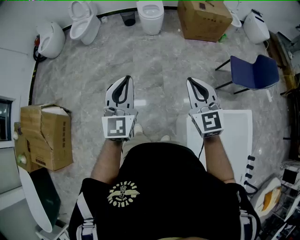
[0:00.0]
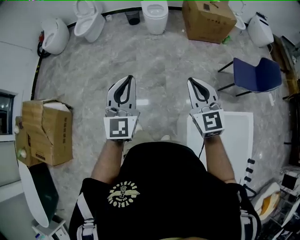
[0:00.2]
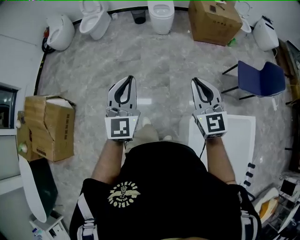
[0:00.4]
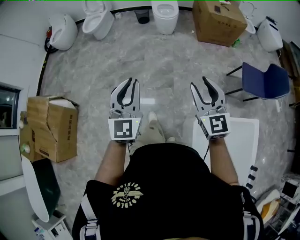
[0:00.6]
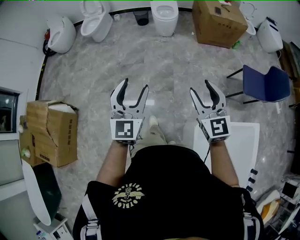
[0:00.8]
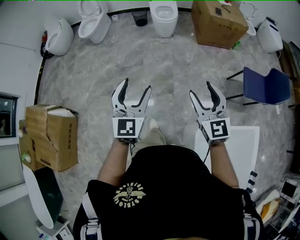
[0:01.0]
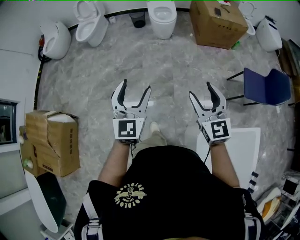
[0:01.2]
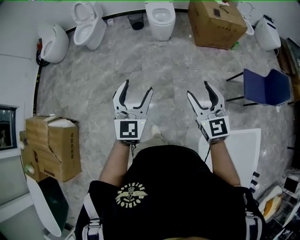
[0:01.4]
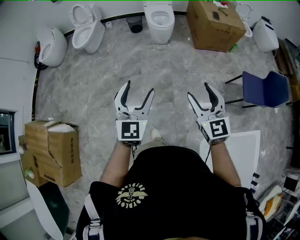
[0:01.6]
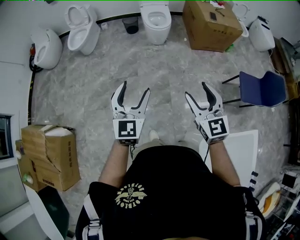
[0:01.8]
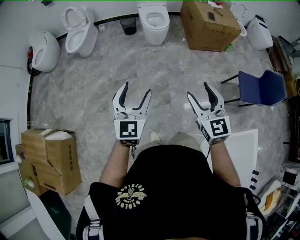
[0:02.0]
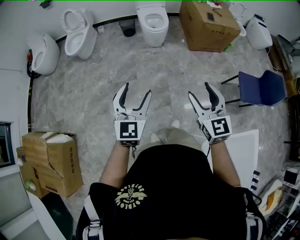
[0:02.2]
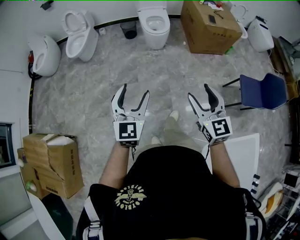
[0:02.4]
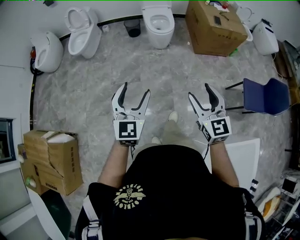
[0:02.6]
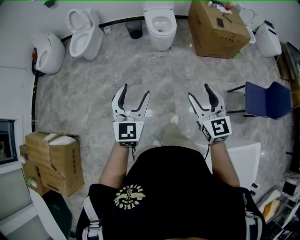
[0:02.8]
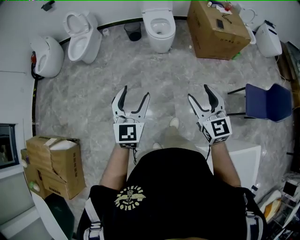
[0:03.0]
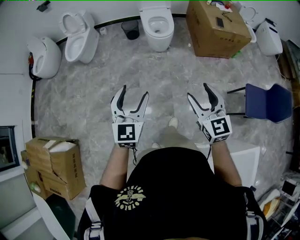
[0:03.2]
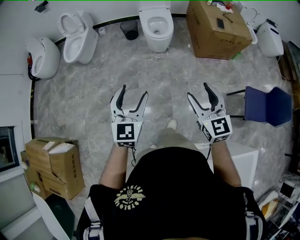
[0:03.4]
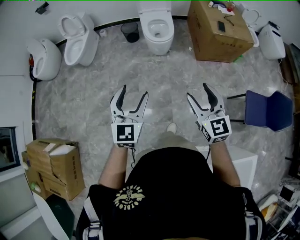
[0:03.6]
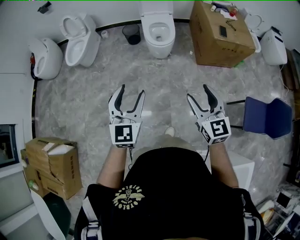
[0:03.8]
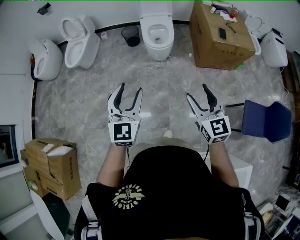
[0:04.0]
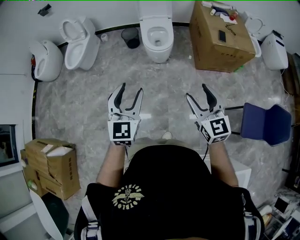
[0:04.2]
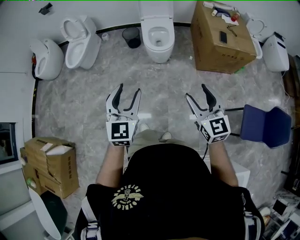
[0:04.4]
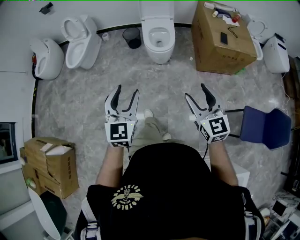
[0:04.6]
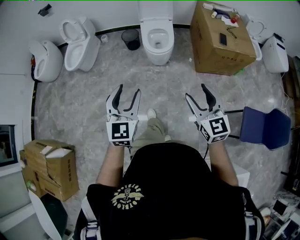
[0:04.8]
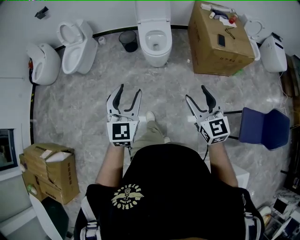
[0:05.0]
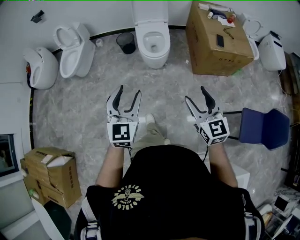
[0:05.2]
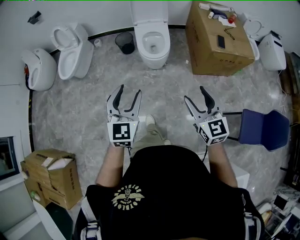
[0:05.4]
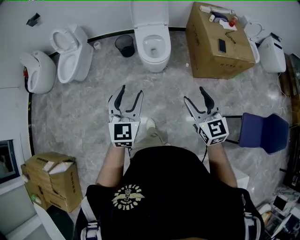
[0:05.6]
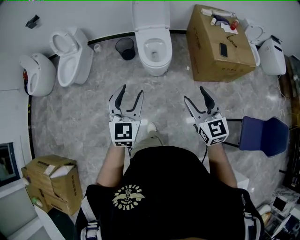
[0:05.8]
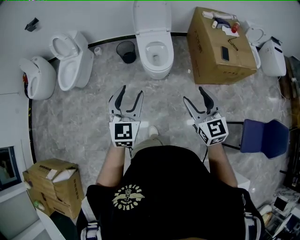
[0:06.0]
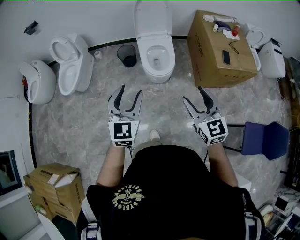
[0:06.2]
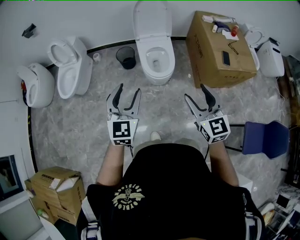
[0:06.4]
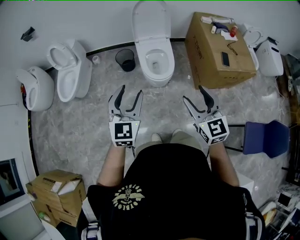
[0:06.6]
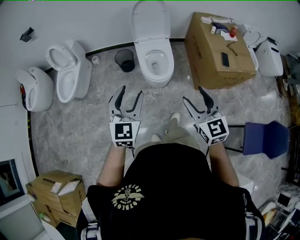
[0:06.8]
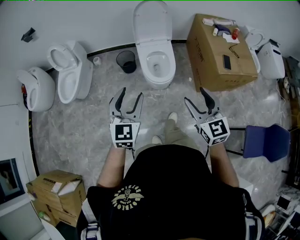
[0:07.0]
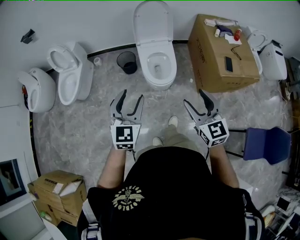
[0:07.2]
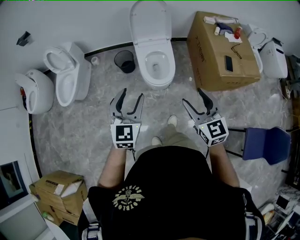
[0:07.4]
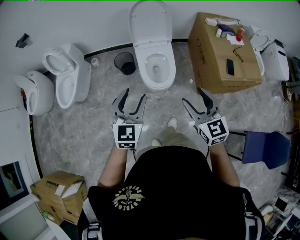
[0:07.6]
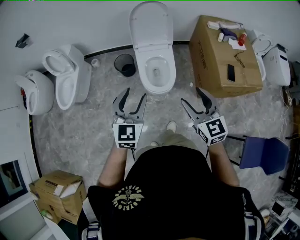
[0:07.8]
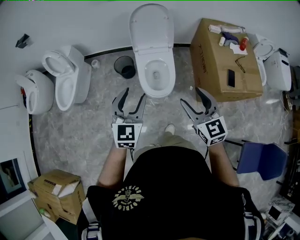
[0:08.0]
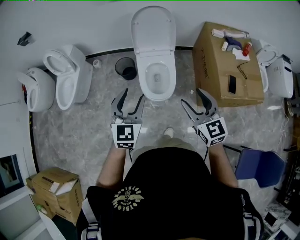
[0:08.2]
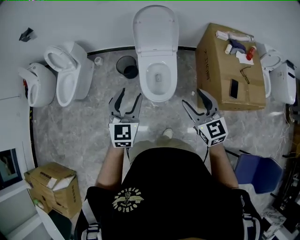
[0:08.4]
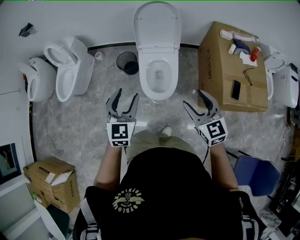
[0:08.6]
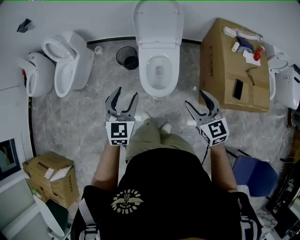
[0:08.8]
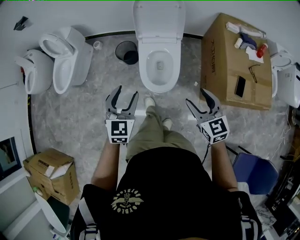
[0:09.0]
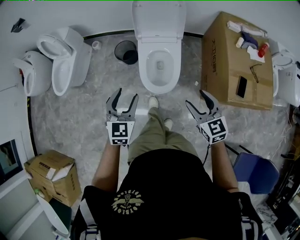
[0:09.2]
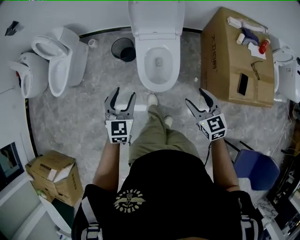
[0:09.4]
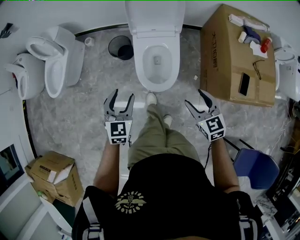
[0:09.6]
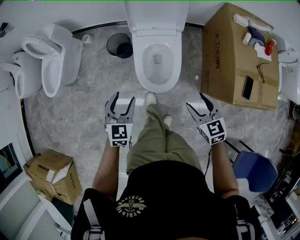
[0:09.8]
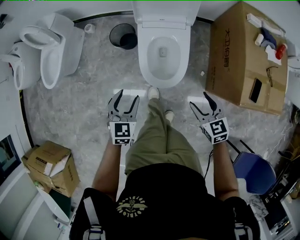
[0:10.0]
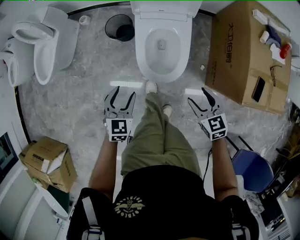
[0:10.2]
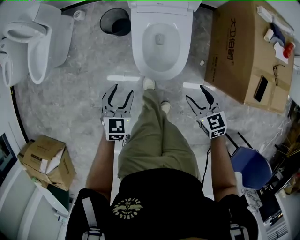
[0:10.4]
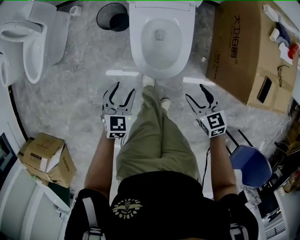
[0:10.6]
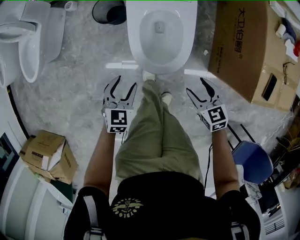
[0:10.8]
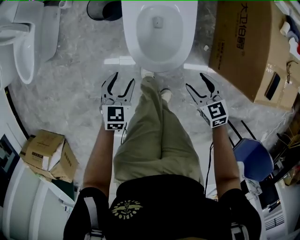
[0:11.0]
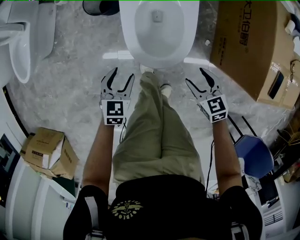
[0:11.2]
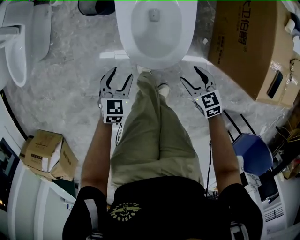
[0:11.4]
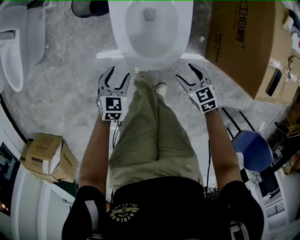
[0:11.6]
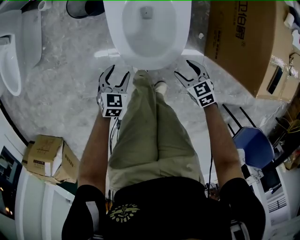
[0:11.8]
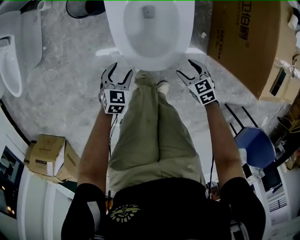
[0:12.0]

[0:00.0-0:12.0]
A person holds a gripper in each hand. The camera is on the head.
0:00.0 to 0:01.6: Both grippers travel together forward, some 20 cm. The right gripper opens its fingers; the left gripper opens up.
0:01.6 to 0:03.0: Both grippers move forward, approximately 20 cm.
0:03.0 to 0:04.4: Both grippers move forward and to the right, approximately 20 cm.
0:04.4 to 0:06.0: The grippers both shift forward by approximately 20 cm.
0:06.0 to 0:07.6: Both grippers move forward, roughly 20 cm.
0:07.6 to 0:09.0: The right gripper moves forward, downward and to the right, roughly 20 cm, while the left gripper moves forward and downward, roughly 15 cm.
0:09.0 to 0:10.4: Both grippers travel together downward, some 25 cm.
0:10.4 to 0:12.0: Both grippers move downward, about 25 cm.

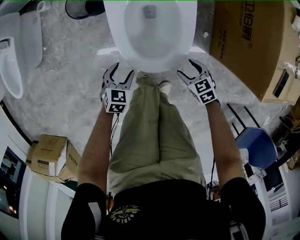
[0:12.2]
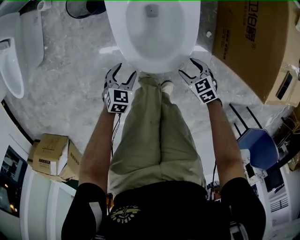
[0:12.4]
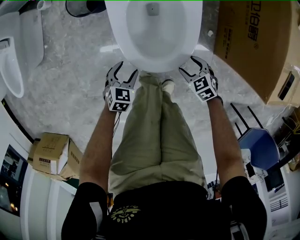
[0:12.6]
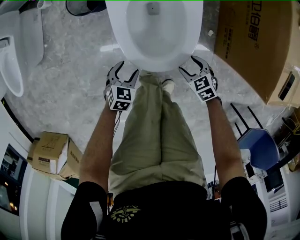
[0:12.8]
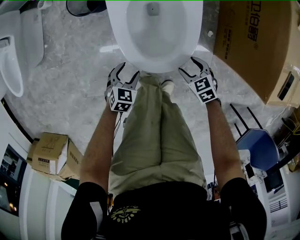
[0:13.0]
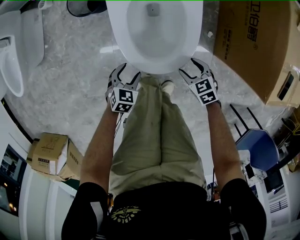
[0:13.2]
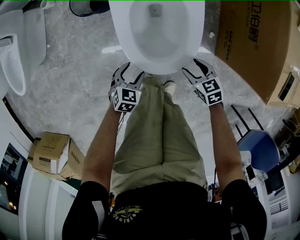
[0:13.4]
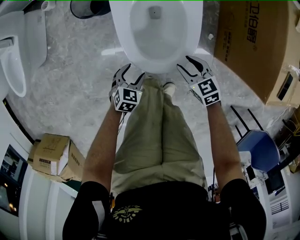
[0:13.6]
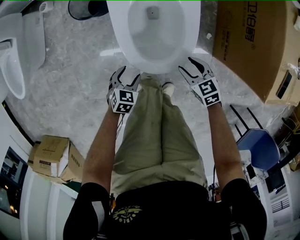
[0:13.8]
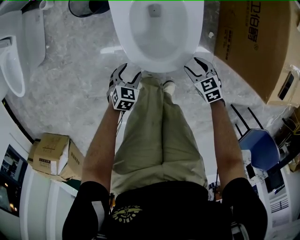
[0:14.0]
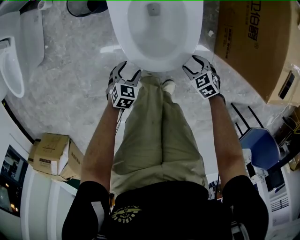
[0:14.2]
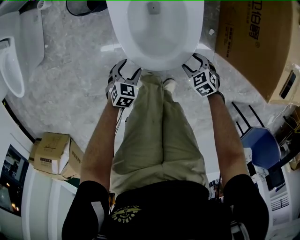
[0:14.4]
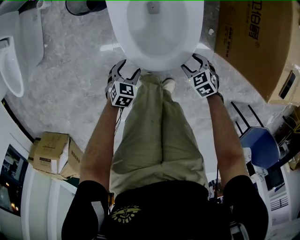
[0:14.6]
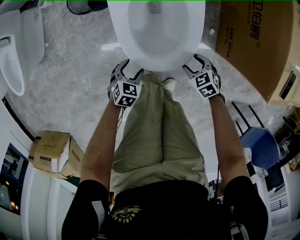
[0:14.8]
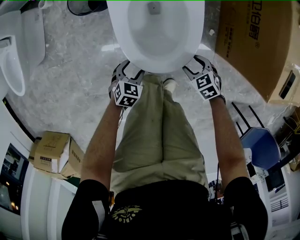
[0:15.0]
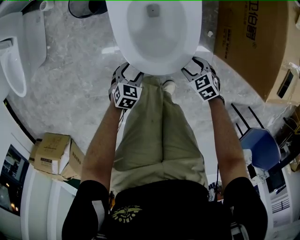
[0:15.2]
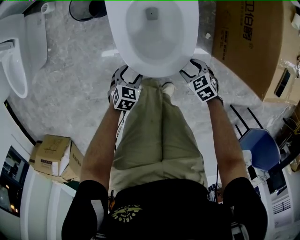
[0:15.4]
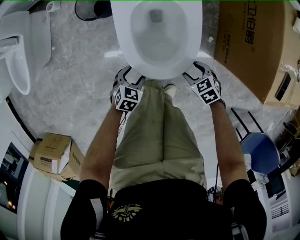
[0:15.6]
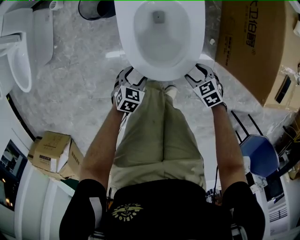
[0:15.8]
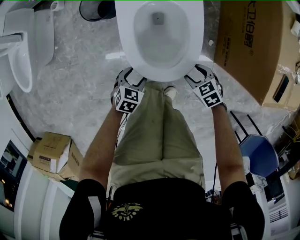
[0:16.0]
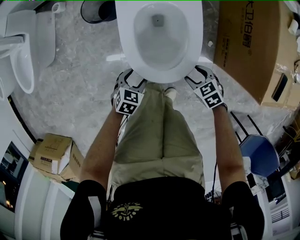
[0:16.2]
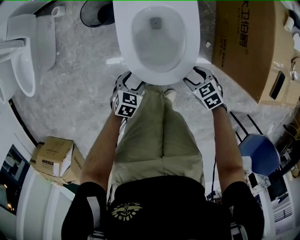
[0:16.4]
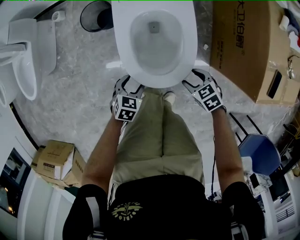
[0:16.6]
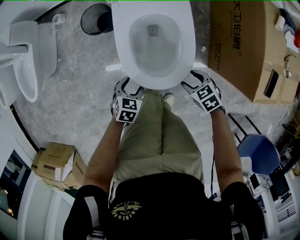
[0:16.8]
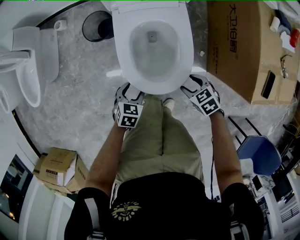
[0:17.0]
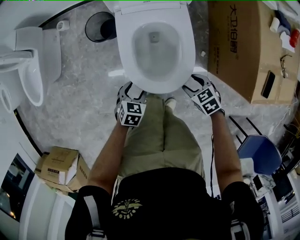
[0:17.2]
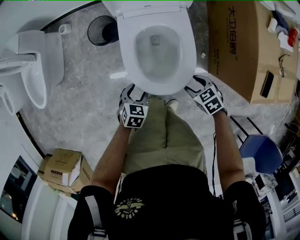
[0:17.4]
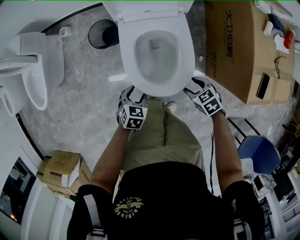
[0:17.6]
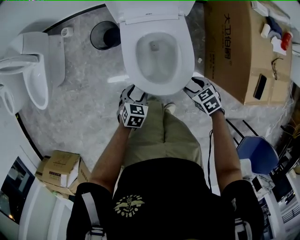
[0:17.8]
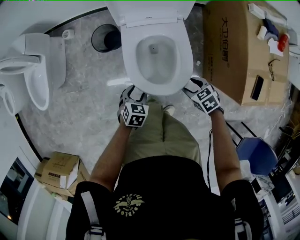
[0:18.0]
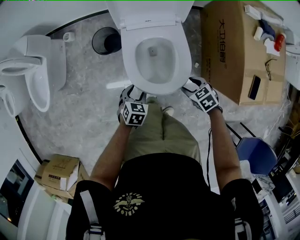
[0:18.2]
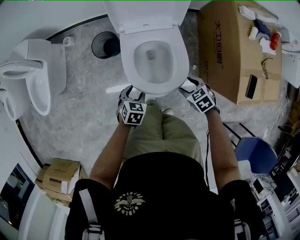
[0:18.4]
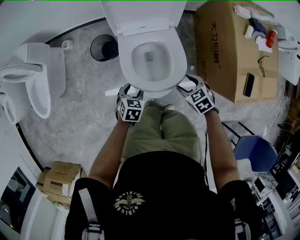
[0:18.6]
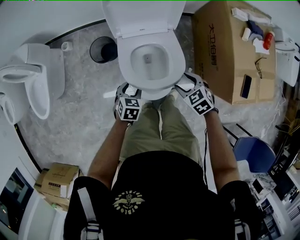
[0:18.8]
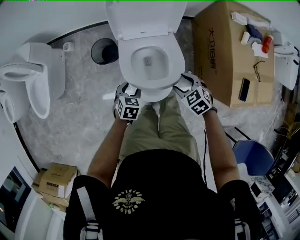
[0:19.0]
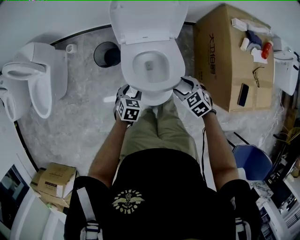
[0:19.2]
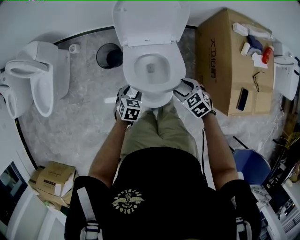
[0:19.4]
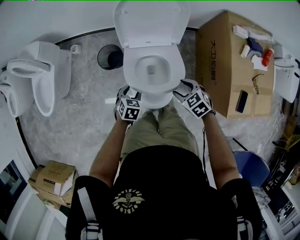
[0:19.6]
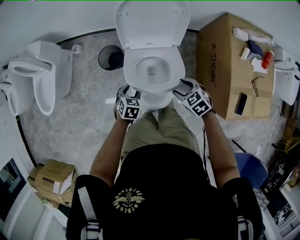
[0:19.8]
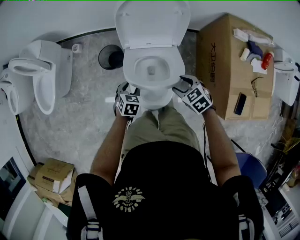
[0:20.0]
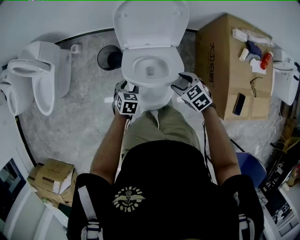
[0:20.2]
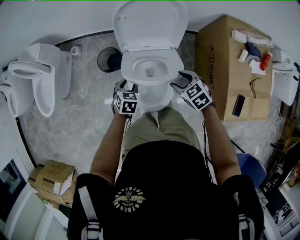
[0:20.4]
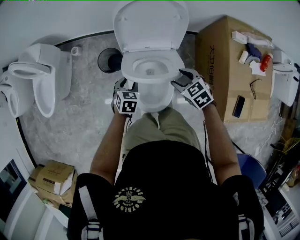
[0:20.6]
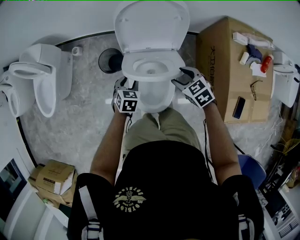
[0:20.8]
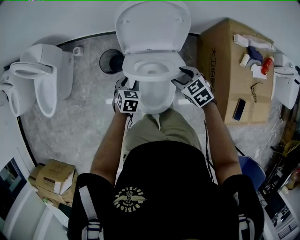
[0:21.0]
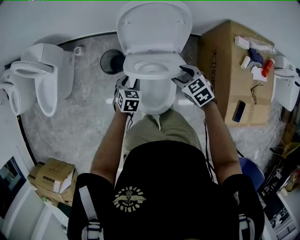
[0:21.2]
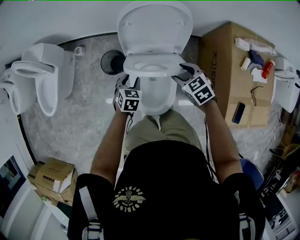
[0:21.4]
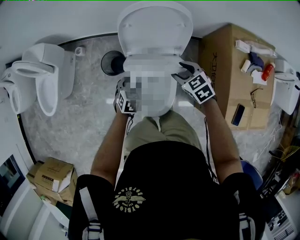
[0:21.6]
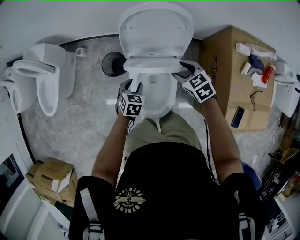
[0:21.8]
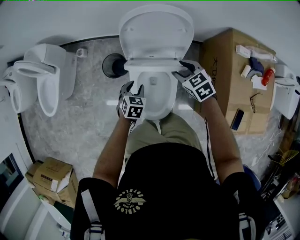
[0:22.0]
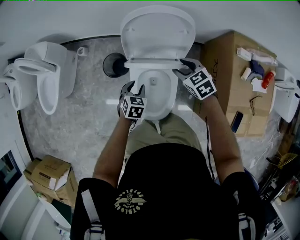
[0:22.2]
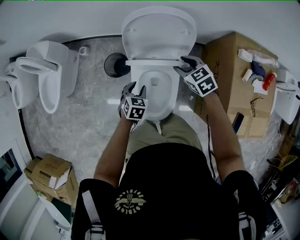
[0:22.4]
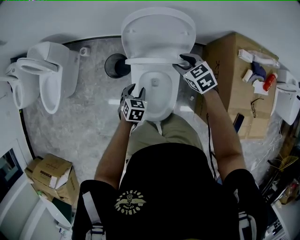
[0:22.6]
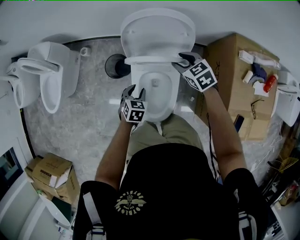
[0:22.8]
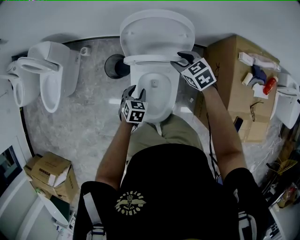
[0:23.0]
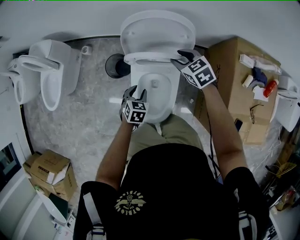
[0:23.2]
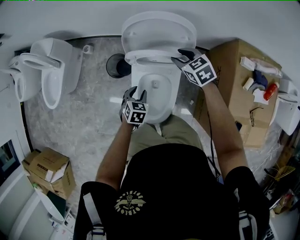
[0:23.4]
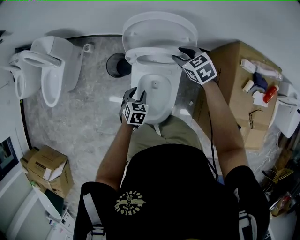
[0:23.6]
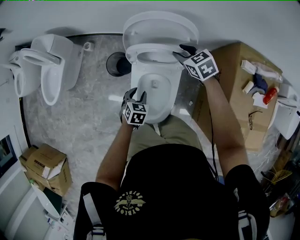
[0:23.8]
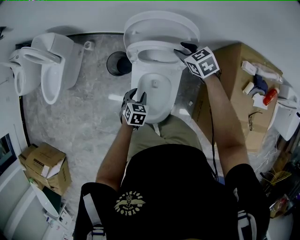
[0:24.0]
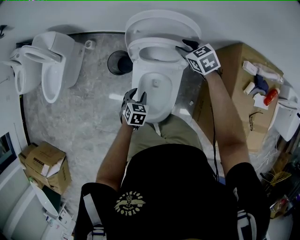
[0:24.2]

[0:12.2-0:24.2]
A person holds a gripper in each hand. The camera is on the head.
0:15.2 to 0:16.6: The grippers both shift upward by about 10 cm.
0:16.6 to 0:18.2: The two grippers go about 15 cm upward and forward.
0:18.2 to 0:19.8: The right gripper travels upward and forward by roughly 15 cm; the left gripper moves forward and upward, about 10 cm.
0:19.8 to 0:21.2: Both grippers travel together forward, some 10 cm.
0:21.2 to 0:22.6: The right gripper moves forward, about 10 cm.
0:22.6 to 0:24.2: The right gripper shifts roughly 10 cm forward.
